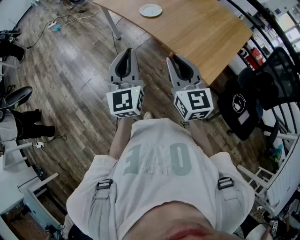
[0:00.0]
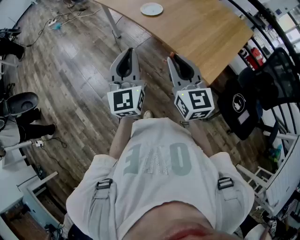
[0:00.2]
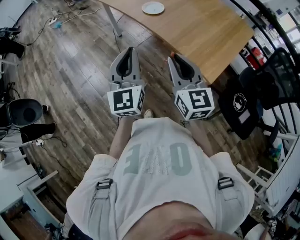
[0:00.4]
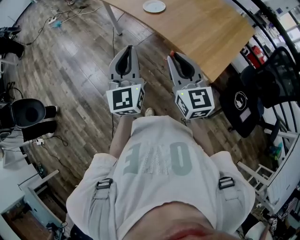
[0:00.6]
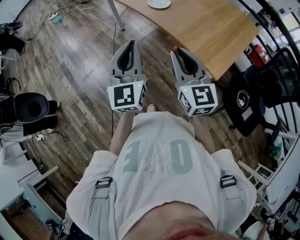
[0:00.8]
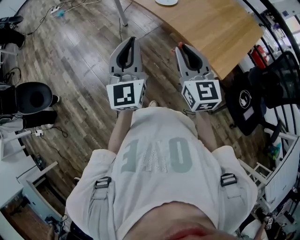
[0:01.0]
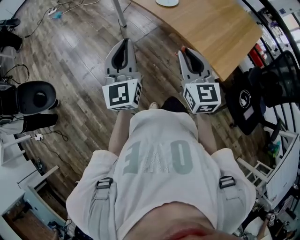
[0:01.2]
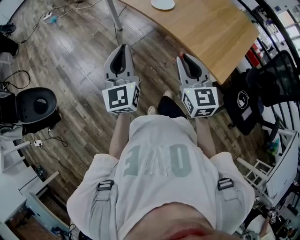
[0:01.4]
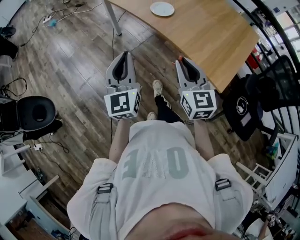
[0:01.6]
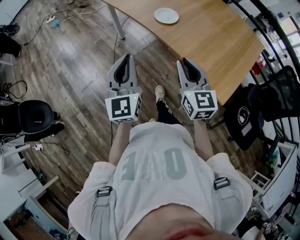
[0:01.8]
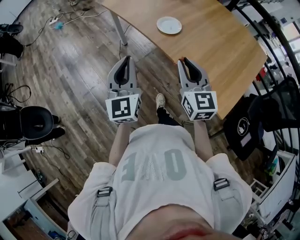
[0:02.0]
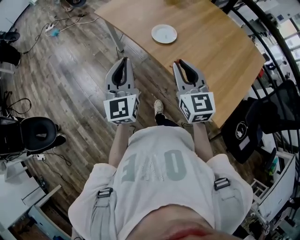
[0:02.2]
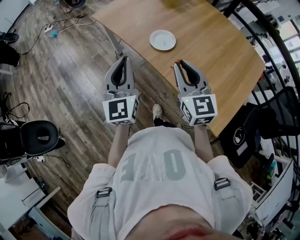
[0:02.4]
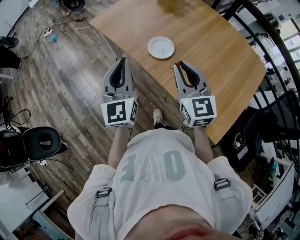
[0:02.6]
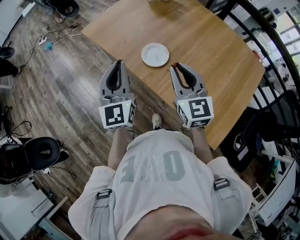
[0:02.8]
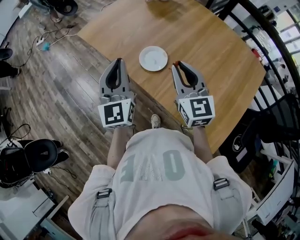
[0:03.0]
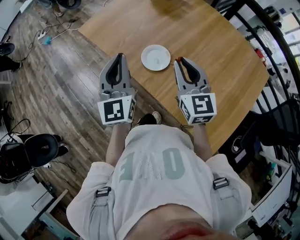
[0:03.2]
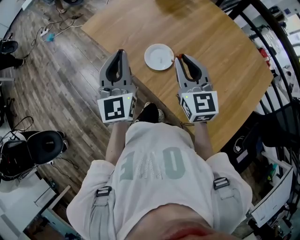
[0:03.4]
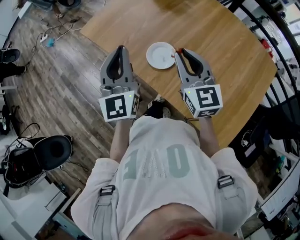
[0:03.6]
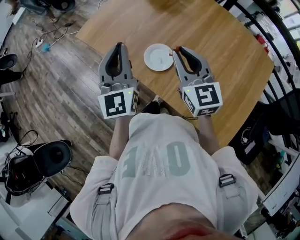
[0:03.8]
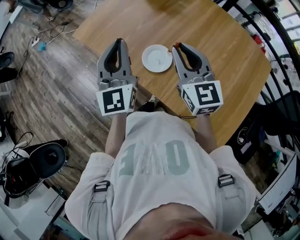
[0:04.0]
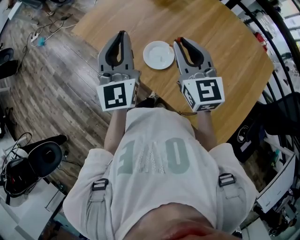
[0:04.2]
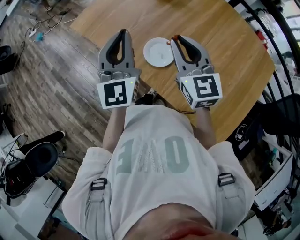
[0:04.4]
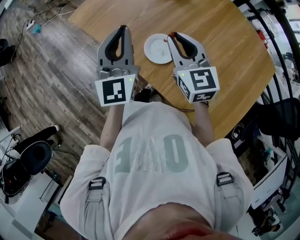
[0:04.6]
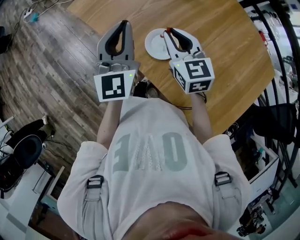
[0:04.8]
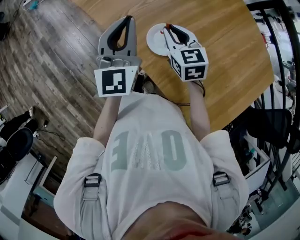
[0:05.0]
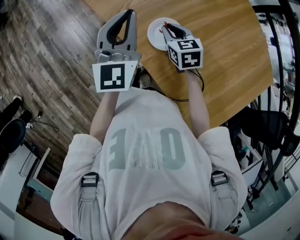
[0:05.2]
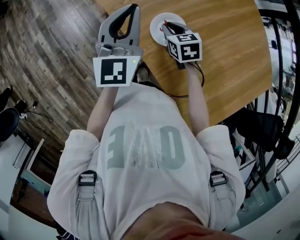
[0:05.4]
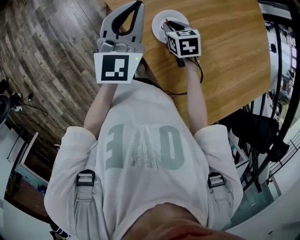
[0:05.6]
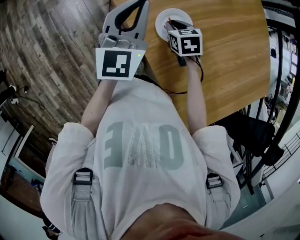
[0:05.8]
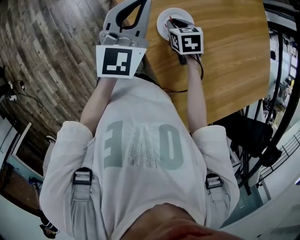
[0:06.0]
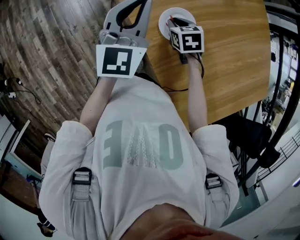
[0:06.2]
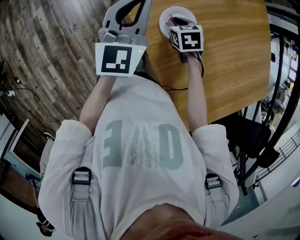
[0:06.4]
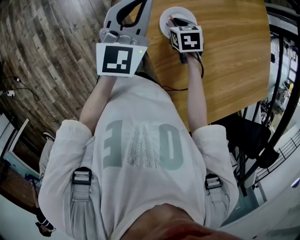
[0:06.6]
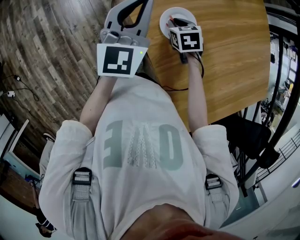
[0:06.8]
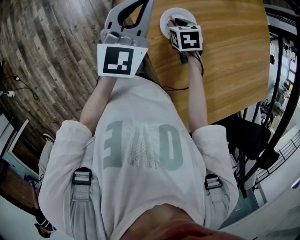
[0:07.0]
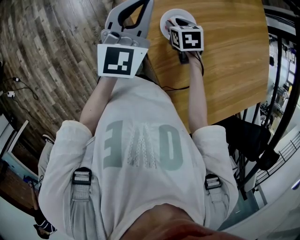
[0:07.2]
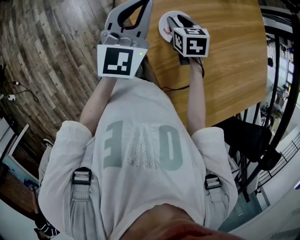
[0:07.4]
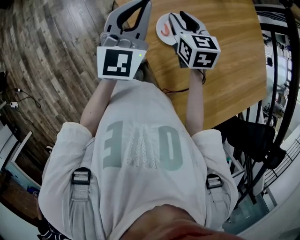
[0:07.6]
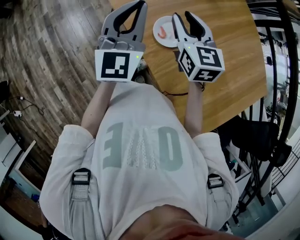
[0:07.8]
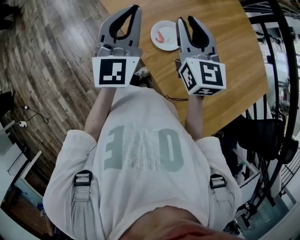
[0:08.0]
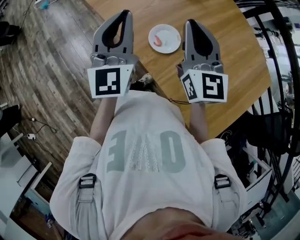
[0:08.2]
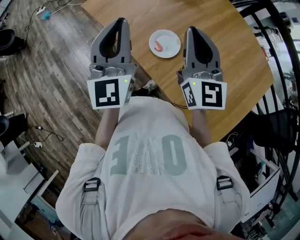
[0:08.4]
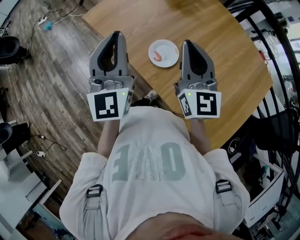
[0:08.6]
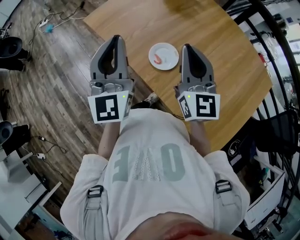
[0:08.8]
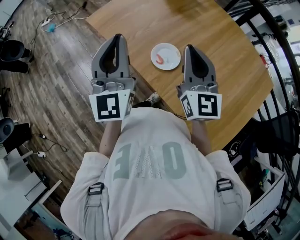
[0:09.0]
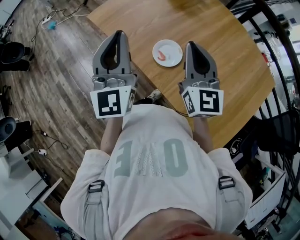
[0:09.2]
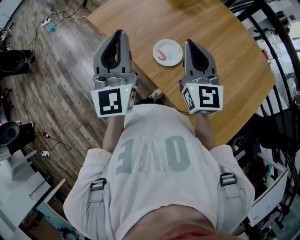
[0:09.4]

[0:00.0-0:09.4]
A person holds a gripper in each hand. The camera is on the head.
0:00.0 to 0:01.6: The left gripper shifts roughly 10 cm to the left and forward. Meanwhile the right gripper is displaced forward by some 5 cm.
0:01.6 to 0:03.2: The two grippers go approximately 30 cm forward.
0:03.2 to 0:04.8: The right gripper moves forward, to the left and downward, roughly 15 cm. Meanwhile the left gripper is displaced forward by some 10 cm.
0:04.8 to 0:06.2: The right gripper heads downward, covering approximately 20 cm, and tilts its fingers some 40 degrees downward. Meanwhile the left gripper shifts about 5 cm downward.
0:06.2 to 0:07.8: The left gripper goes approximately 5 cm upward, while the right gripper is displaced upward by about 20 cm, and tilts its fingers approximately 40 degrees upward.
0:07.8 to 0:09.4: The right gripper shifts approximately 10 cm upward and backward, swivels approximately 30 degrees, and closes its fingers; the left gripper heads upward, covering some 10 cm.

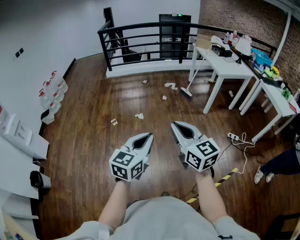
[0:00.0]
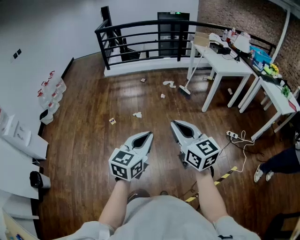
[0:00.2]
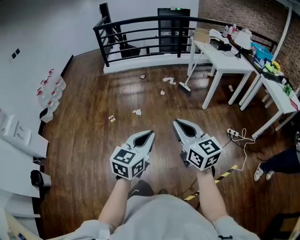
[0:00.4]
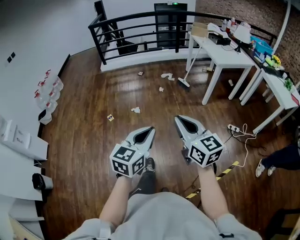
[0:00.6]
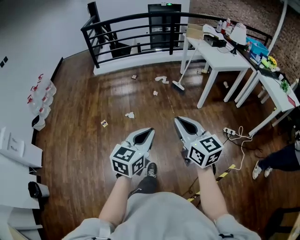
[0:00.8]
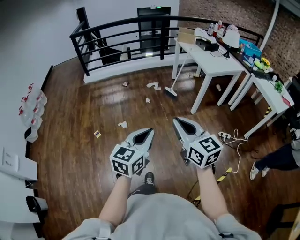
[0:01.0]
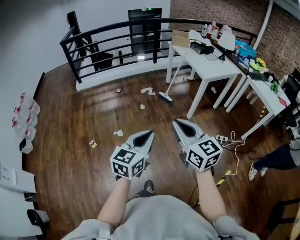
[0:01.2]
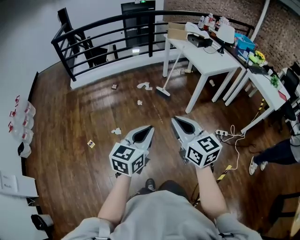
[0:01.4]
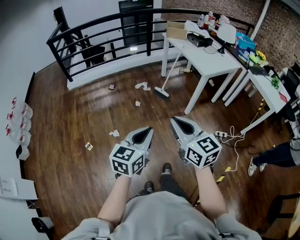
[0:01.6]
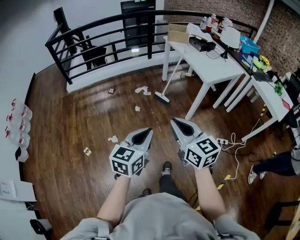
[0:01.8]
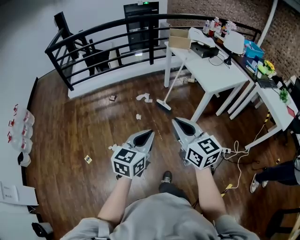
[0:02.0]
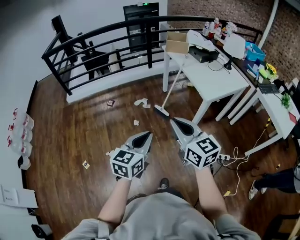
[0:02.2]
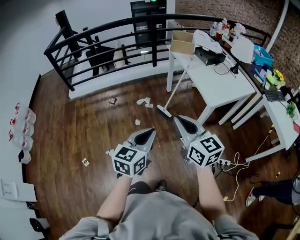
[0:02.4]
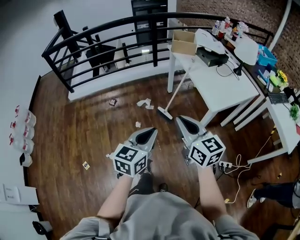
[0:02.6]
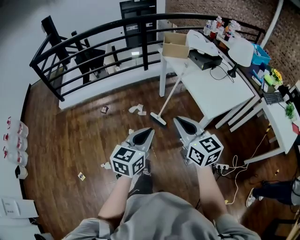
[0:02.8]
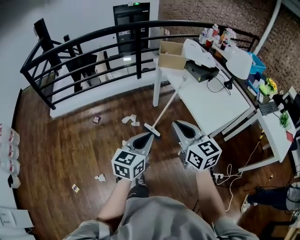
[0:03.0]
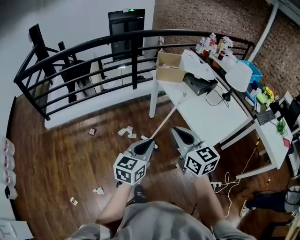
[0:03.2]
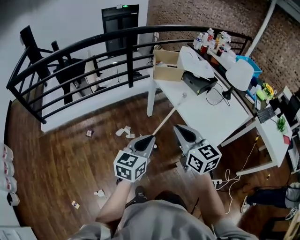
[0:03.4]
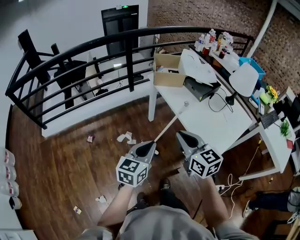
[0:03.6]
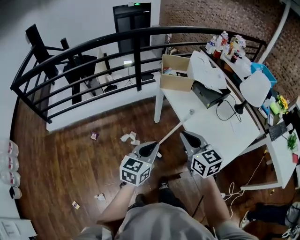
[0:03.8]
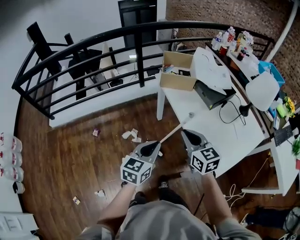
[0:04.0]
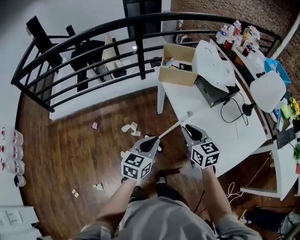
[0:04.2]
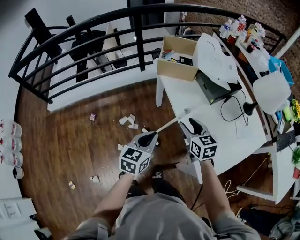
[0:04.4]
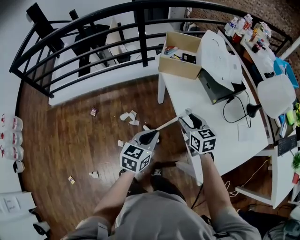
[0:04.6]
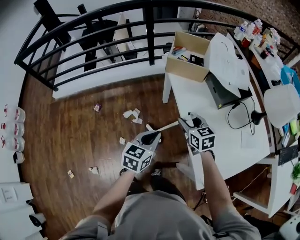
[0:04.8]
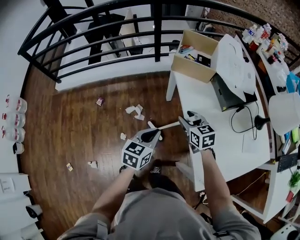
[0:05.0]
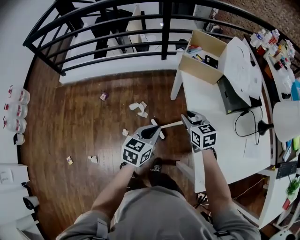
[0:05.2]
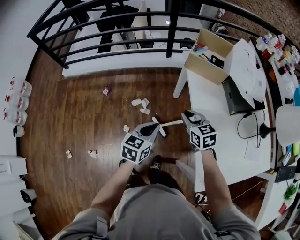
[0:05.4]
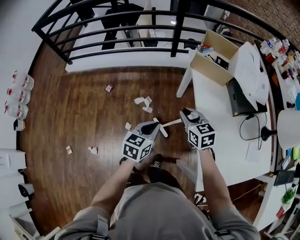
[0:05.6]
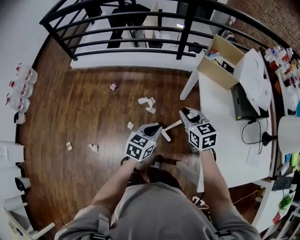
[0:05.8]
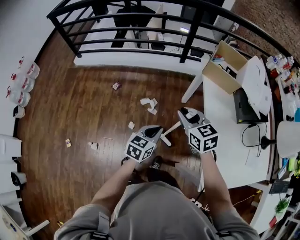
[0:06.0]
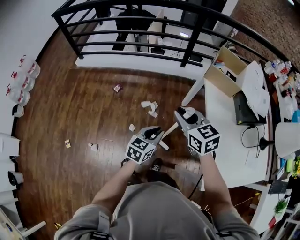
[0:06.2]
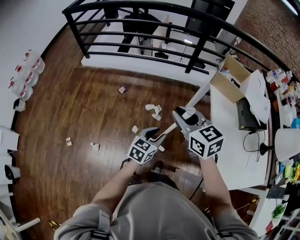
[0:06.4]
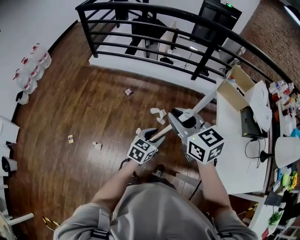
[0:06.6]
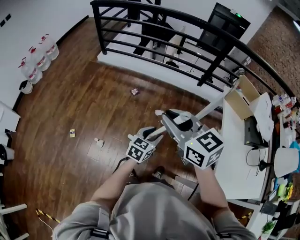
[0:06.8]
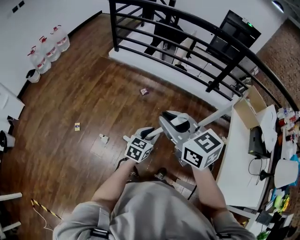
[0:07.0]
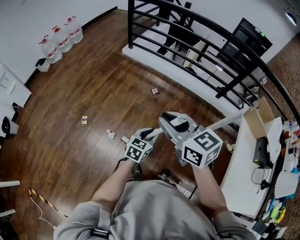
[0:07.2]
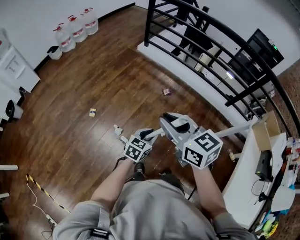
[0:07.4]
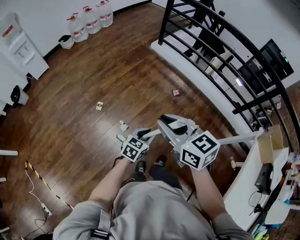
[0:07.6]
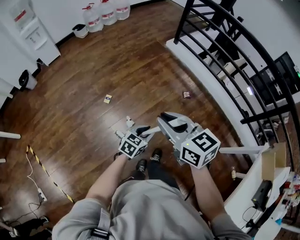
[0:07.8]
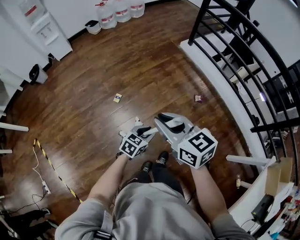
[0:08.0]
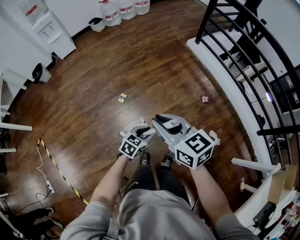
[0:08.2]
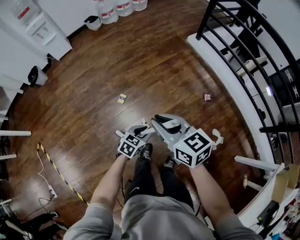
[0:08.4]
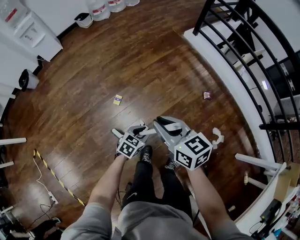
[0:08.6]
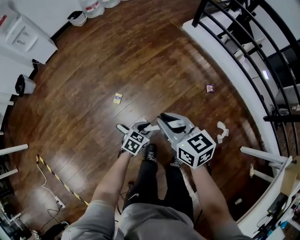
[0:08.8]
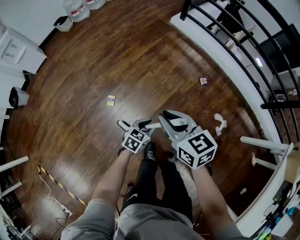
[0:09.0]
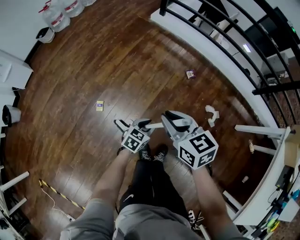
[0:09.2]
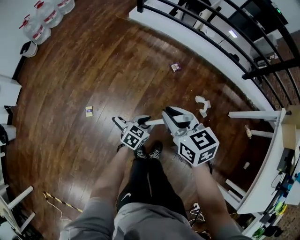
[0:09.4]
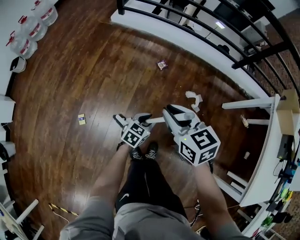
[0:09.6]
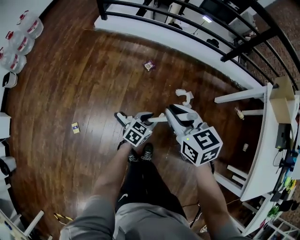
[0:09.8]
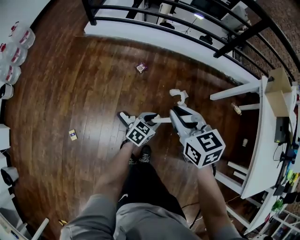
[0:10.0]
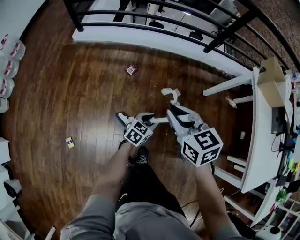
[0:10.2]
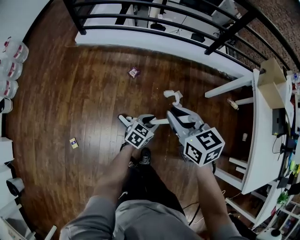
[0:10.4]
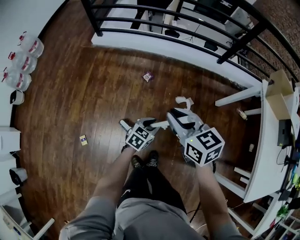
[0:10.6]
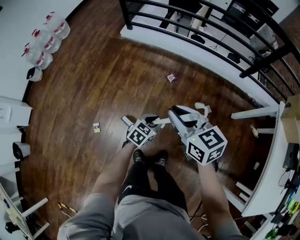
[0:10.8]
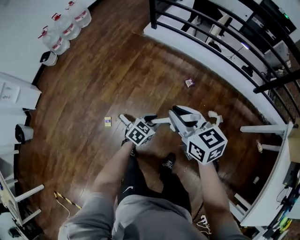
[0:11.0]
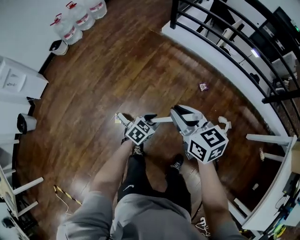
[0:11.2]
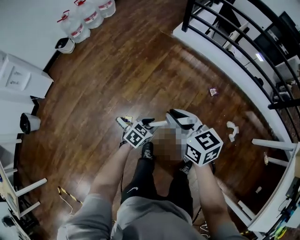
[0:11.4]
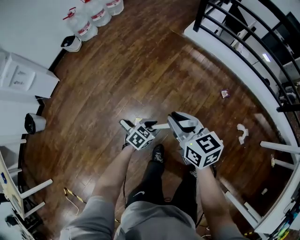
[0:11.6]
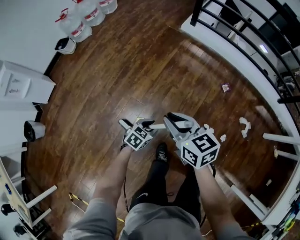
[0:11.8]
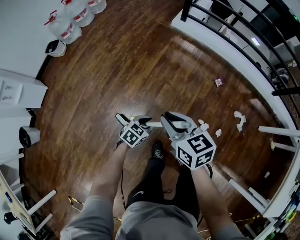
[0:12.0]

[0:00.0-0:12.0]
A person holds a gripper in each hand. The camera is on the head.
0:00.0 to 0:01.6: Both grippers are carried forward, about 40 cm.
0:01.6 to 0:03.0: Both grippers are carried forward, some 50 cm.
0:03.0 to 0:04.4: The right gripper shifts approximately 40 cm forward and downward, and opens up; the left gripper is displaced forward by about 35 cm.
0:04.4 to 0:06.0: The right gripper moves to the left, about 20 cm, changes its angle by approximately 30 degrees, and closes its fingers; the left gripper heads to the left and downward, covering approximately 10 cm.
0:06.0 to 0:07.6: The two grippers travel together, roughly 50 cm. The left gripper changes its angle by approximately 30 degrees, and opens up; the right gripper turns by some 50 degrees.
0:07.6 to 0:09.0: The left gripper travels downward, forward and to the left by about 35 cm; the right gripper goes approximately 35 cm forward, downward and to the left.
0:09.0 to 0:10.4: The right gripper moves about 40 cm, and rotates some 40 degrees. The left gripper shifts by approximately 40 cm, and changes its angle by approximately 40 degrees.
0:10.4 to 0:12.0: Both grippers are carried roughly 60 cm. The left gripper swivels approximately 20 degrees. The right gripper turns by some 30 degrees.

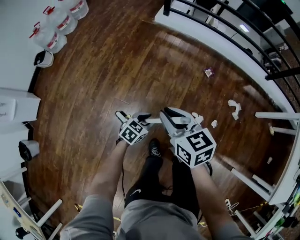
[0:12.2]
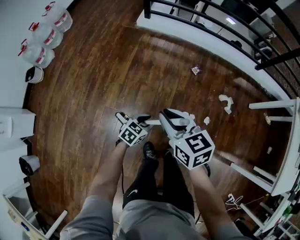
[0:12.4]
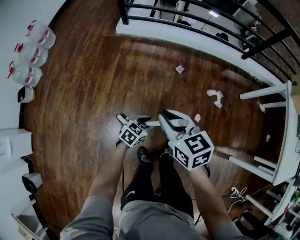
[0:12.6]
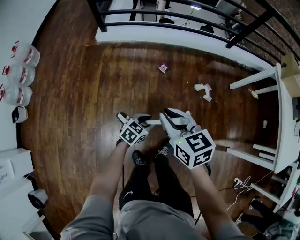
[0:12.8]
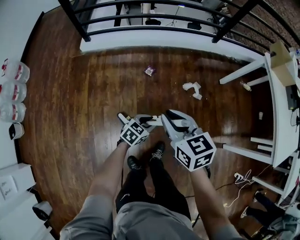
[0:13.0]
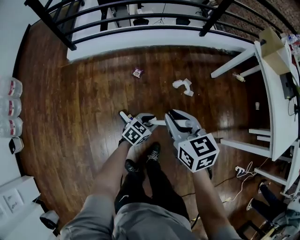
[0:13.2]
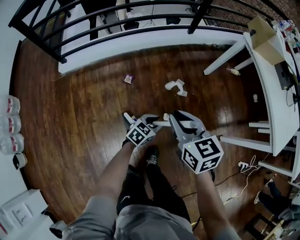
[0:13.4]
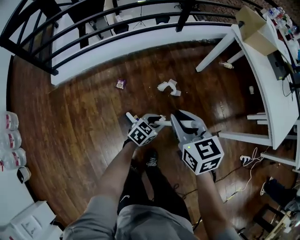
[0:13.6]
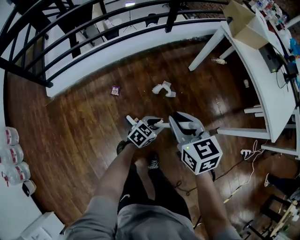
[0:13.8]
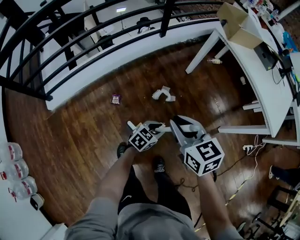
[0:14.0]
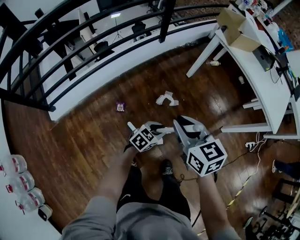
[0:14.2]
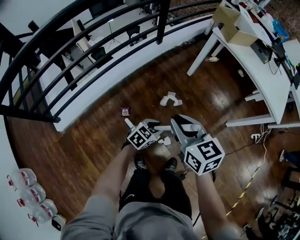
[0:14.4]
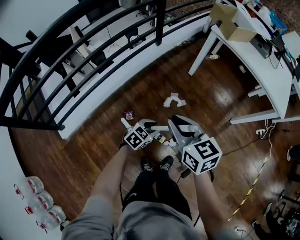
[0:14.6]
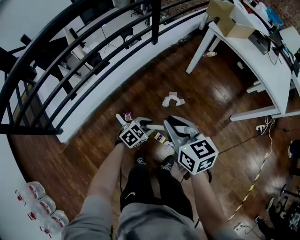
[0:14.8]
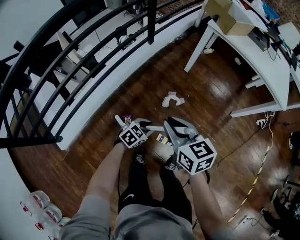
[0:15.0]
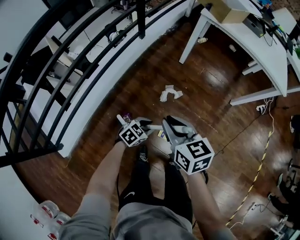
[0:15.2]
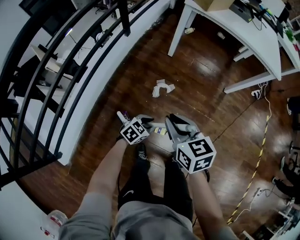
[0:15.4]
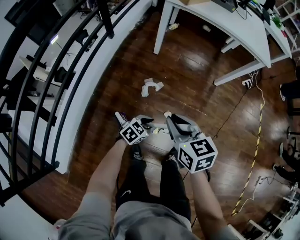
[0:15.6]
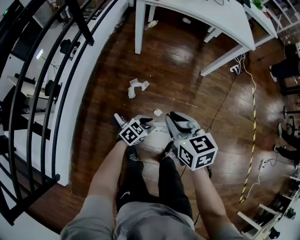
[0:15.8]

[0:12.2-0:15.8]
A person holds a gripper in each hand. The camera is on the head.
0:12.2 to 0:14.0: The pair of grippers is taken some 60 cm. The right gripper rotates approximately 60 degrees. The left gripper rotates about 60 degrees.
0:14.0 to 0:15.8: The left gripper swivels about 50 degrees; the right gripper changes its angle by about 50 degrees.
